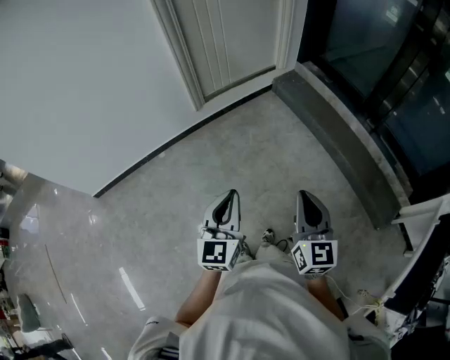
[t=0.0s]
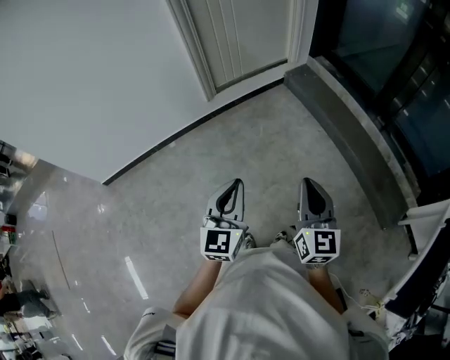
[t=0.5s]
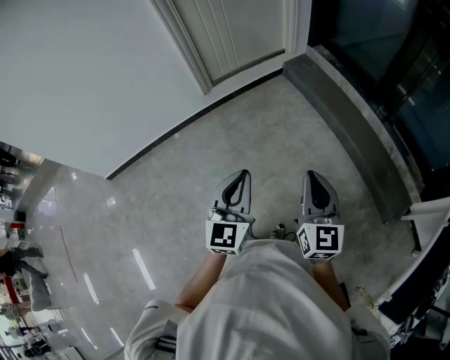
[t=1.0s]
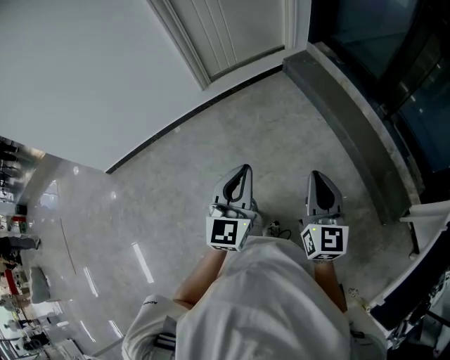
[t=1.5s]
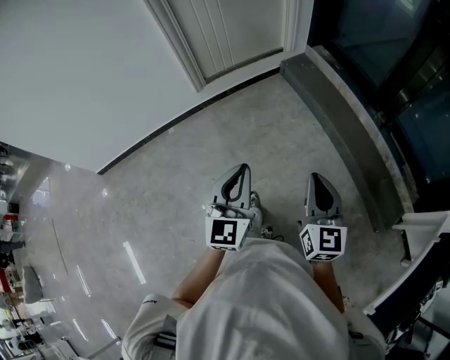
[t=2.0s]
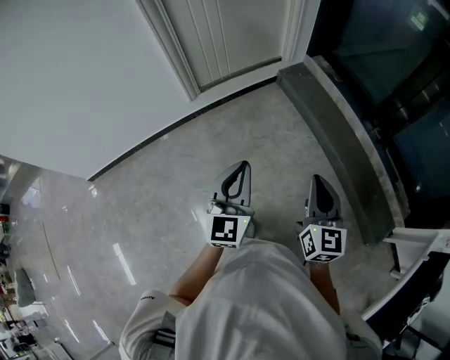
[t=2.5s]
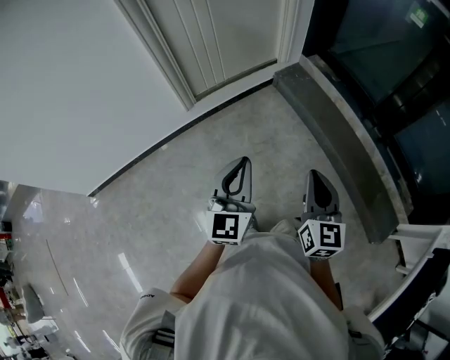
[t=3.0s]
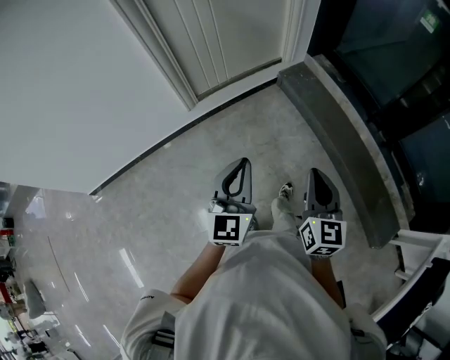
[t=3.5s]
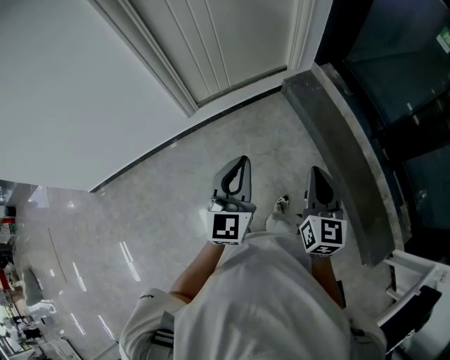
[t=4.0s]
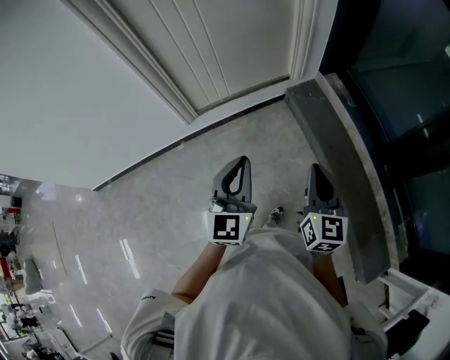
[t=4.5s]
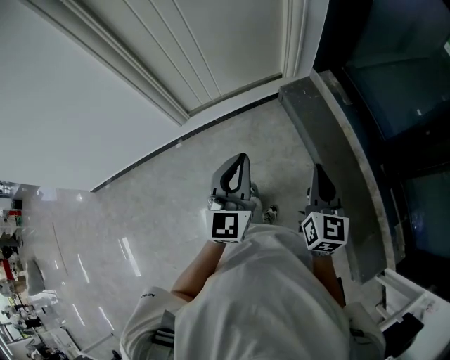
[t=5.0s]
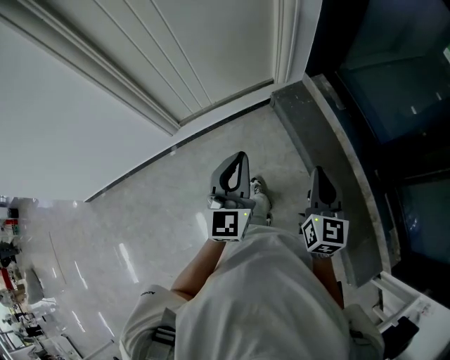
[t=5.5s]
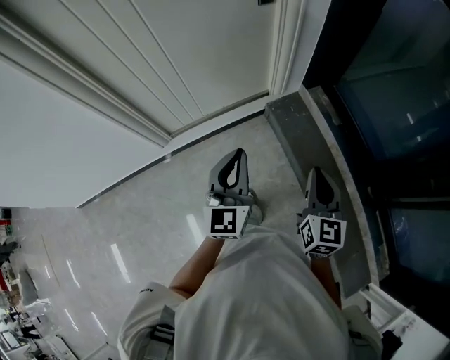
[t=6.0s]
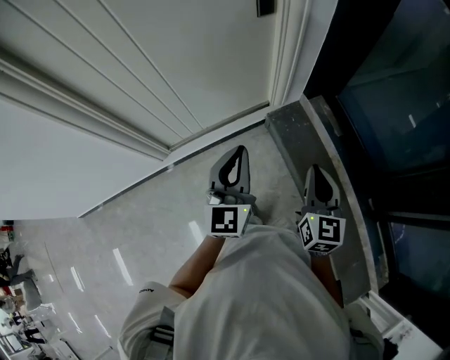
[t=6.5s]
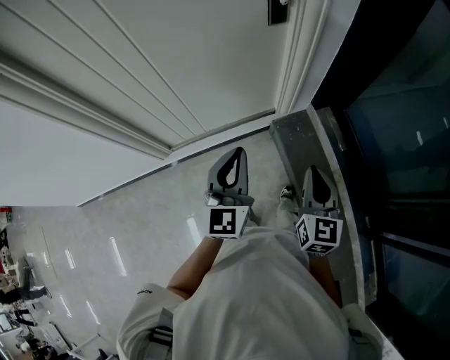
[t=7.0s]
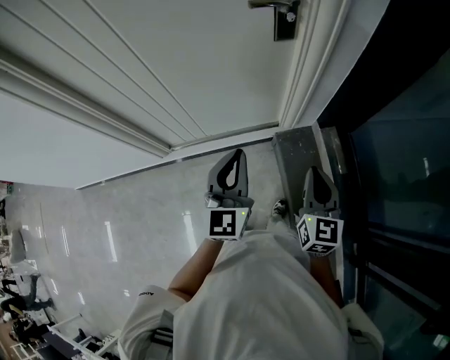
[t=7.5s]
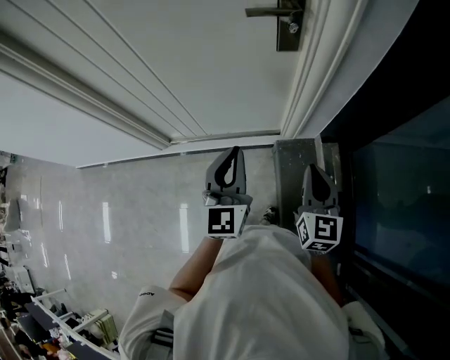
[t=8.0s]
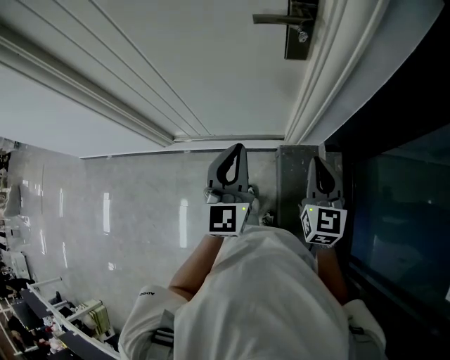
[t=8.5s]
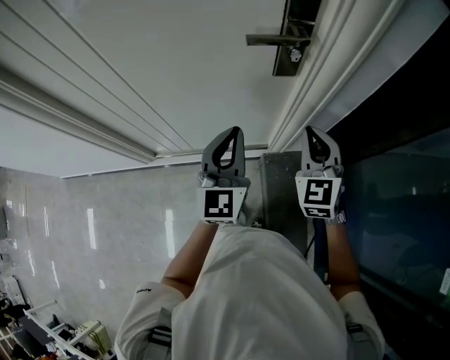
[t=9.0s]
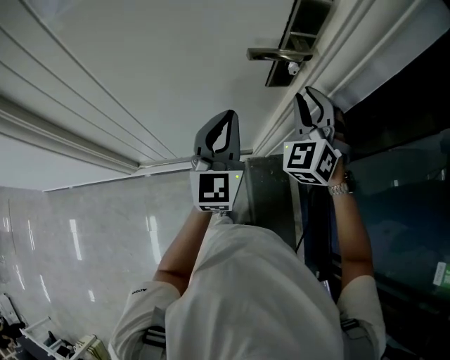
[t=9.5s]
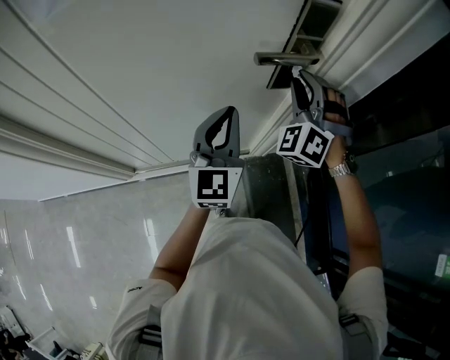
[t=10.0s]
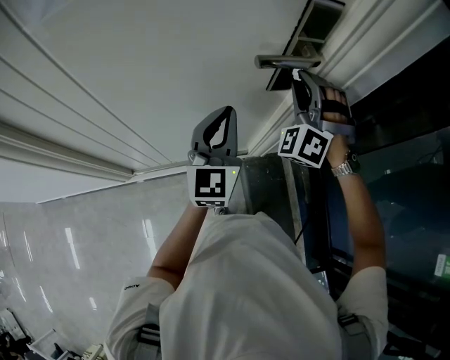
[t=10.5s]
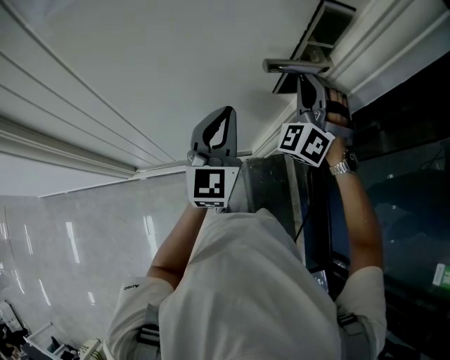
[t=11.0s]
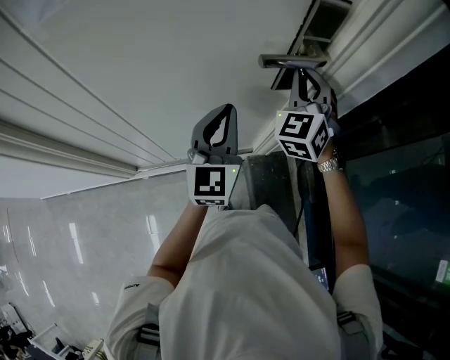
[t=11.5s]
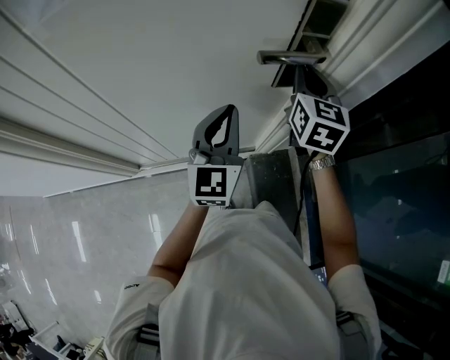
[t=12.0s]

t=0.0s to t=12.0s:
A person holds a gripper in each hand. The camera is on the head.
t=0.0s to t=2.0s: The grippers both shift to the right and forward by approximately 15 cm.
t=2.0s to t=4.0s: Both grippers travel together forward, about 35 cm.
t=4.0s to t=6.0s: Both grippers travel together forward and to the right, approximately 35 cm.
t=6.0s to t=8.0s: The right gripper travels forward by roughly 35 cm, and rotates some 20 degrees, while the left gripper goes approximately 30 cm forward and to the right, and turns by about 20 degrees.
t=8.0s to t=10.0s: The two grippers go roughly 30 cm forward. The right gripper twists approximately 80 degrees counterclockwise, seen from behind.
t=10.0s to t=12.0s: The right gripper rolls clockwise, seen from behind, by roughly 70 degrees.

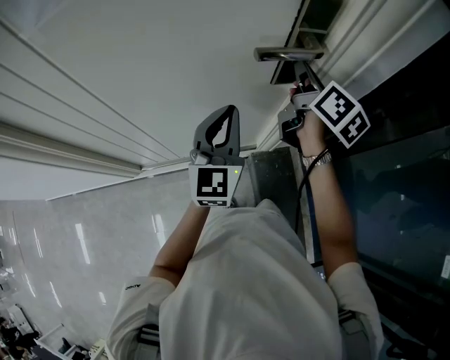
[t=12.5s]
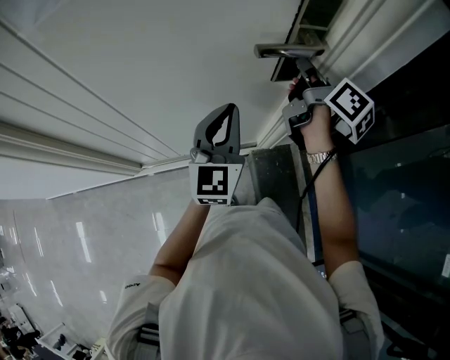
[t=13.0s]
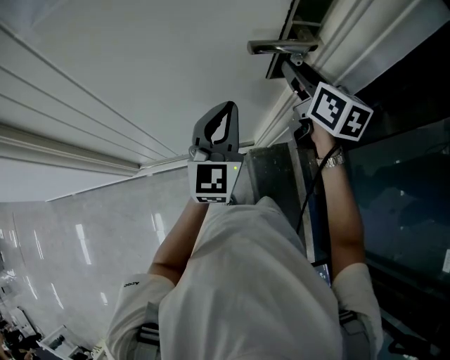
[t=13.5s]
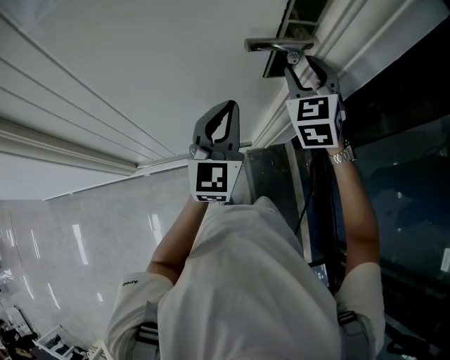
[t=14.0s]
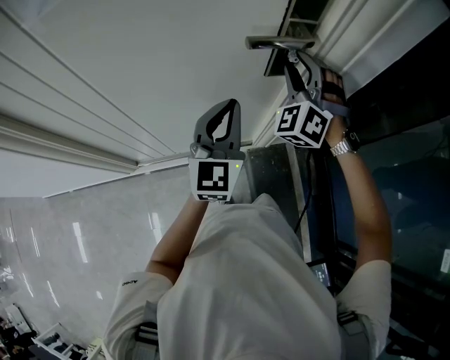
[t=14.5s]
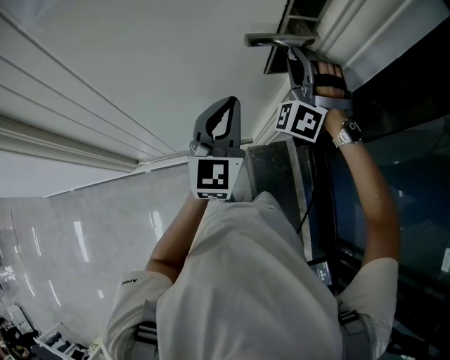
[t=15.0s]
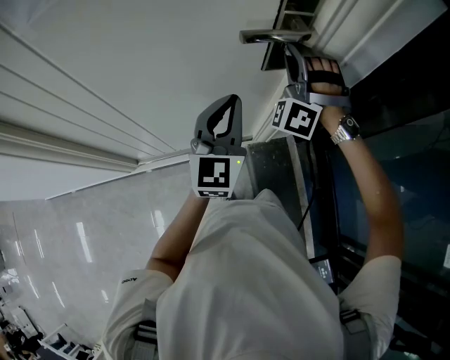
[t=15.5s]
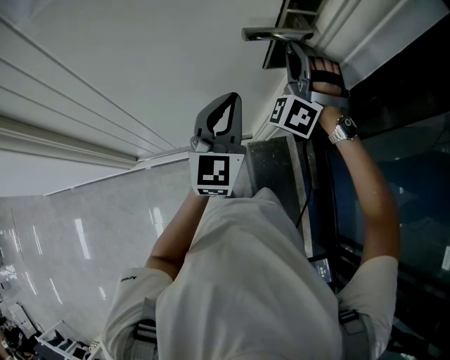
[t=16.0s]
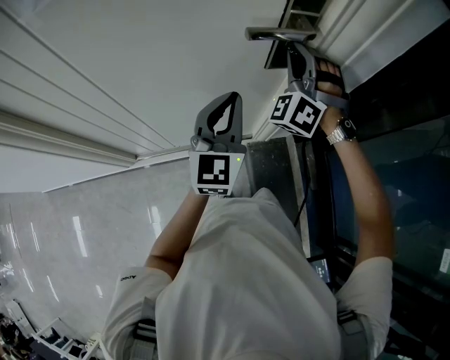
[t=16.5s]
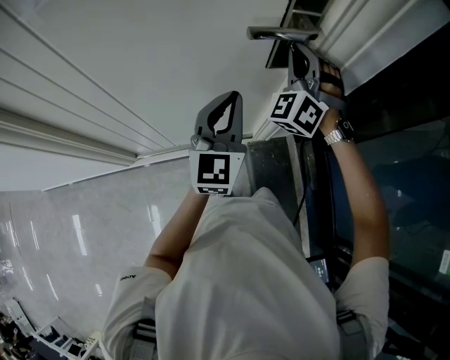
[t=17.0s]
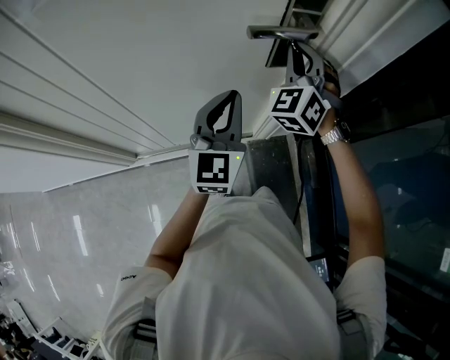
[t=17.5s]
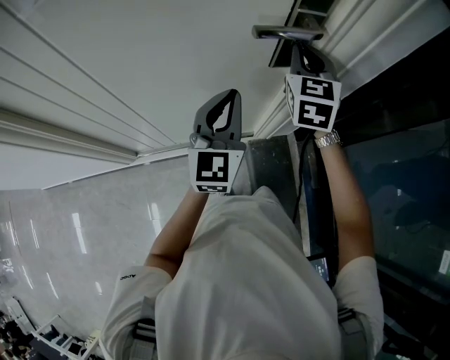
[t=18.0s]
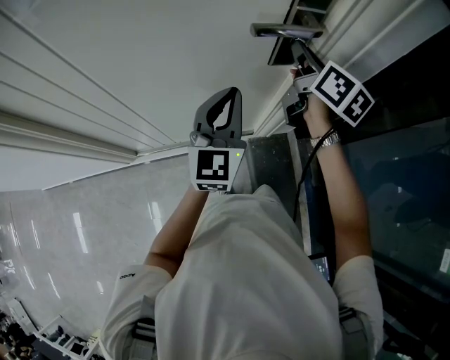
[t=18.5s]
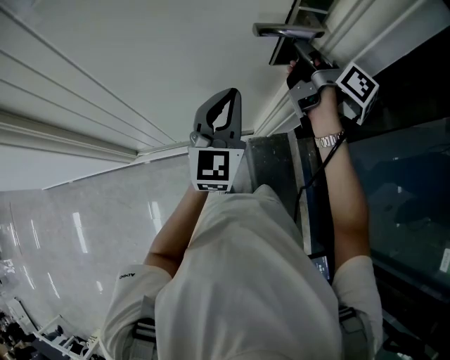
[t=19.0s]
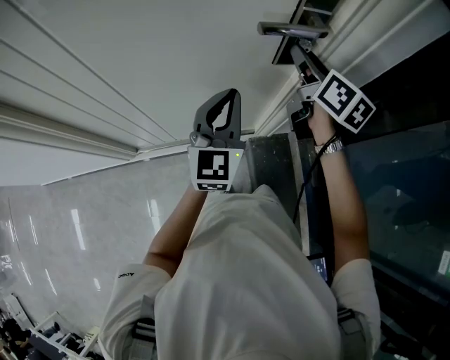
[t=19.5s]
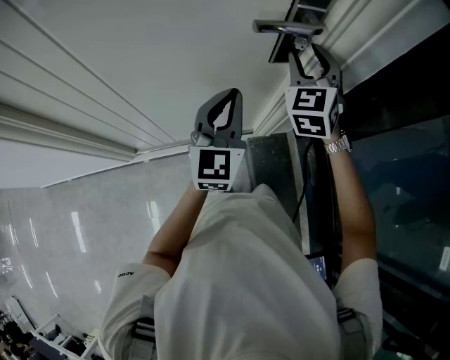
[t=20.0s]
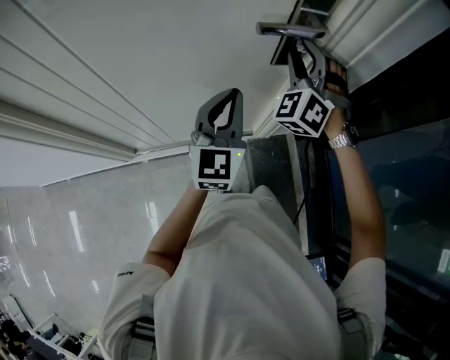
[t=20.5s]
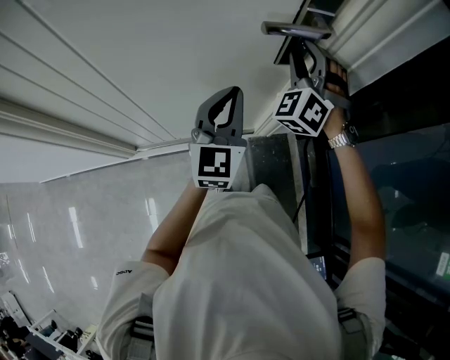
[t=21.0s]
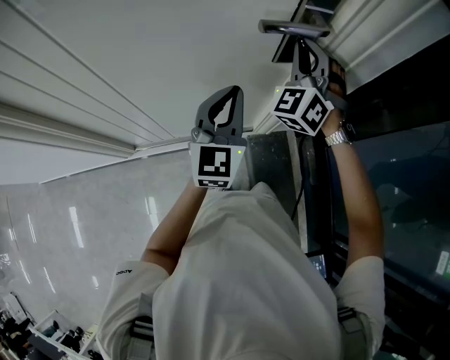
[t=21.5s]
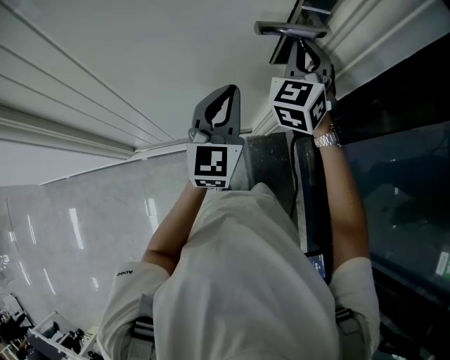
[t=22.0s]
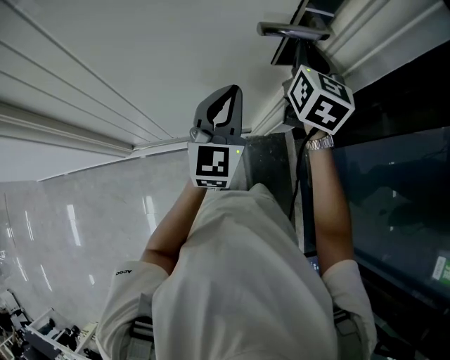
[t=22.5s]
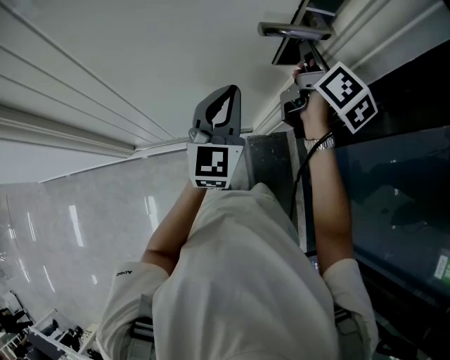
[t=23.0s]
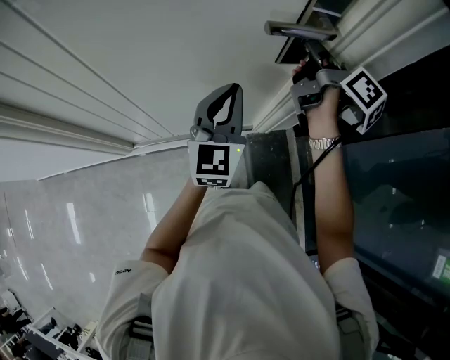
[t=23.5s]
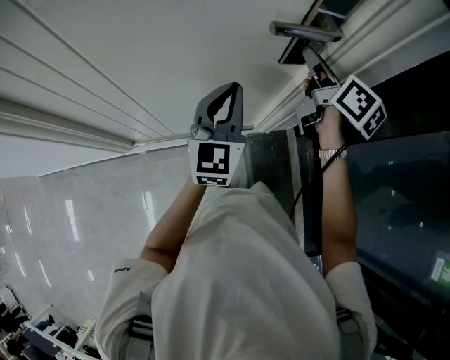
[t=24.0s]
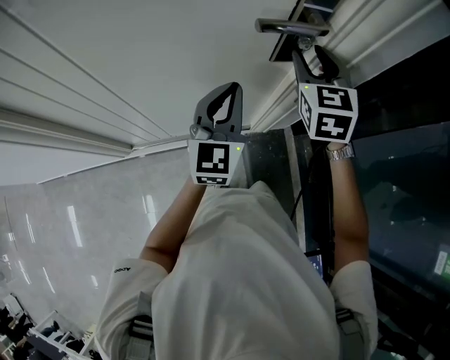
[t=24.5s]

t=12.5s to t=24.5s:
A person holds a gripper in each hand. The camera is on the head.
t=12.5s to t=14.5s: The right gripper rolls counterclockwise, seen from behind, by some 110 degrees, and opens its fingers.
t=14.5s to t=16.5s: The right gripper closes its fingers.
t=16.5s to t=18.5s: The right gripper rotates around the line of its fingers by roughly 110 degrees, clockwise from behind.
t=18.5s to t=20.5s: The right gripper rolls counterclockwise, seen from behind, by approximately 100 degrees, and opens up.
t=20.5s to t=22.5s: The right gripper rolls clockwise, seen from behind, by approximately 70 degrees, and closes.
t=22.5s to t=24.5s: The right gripper swivels about 20 degrees, and opens up.

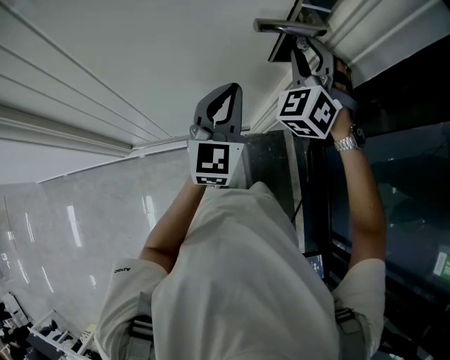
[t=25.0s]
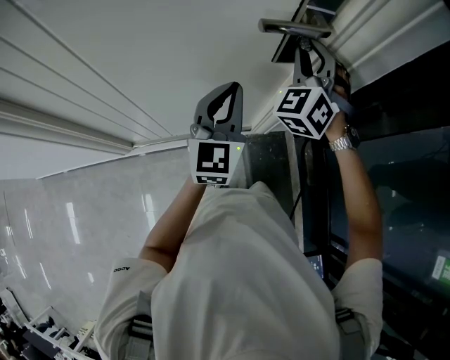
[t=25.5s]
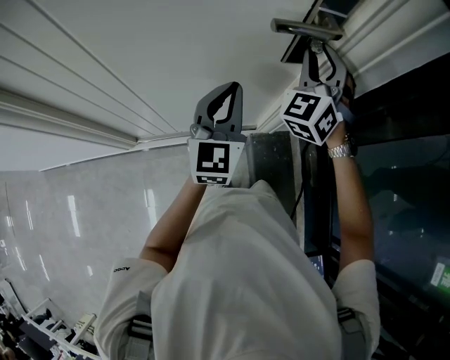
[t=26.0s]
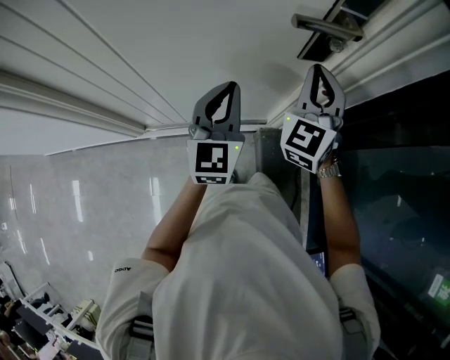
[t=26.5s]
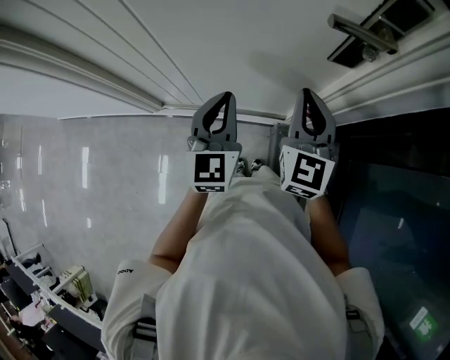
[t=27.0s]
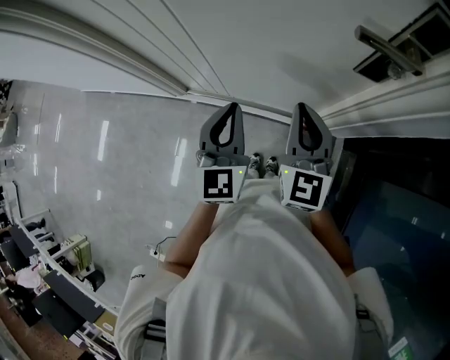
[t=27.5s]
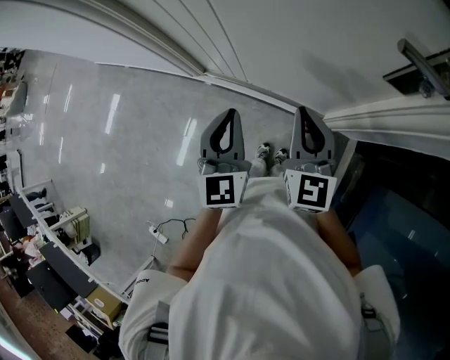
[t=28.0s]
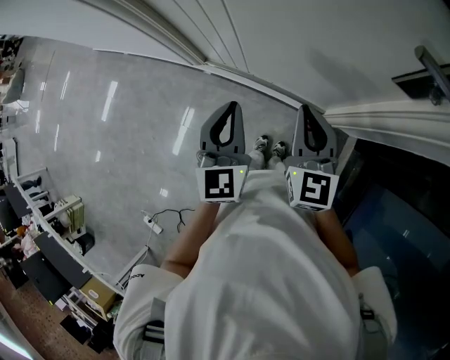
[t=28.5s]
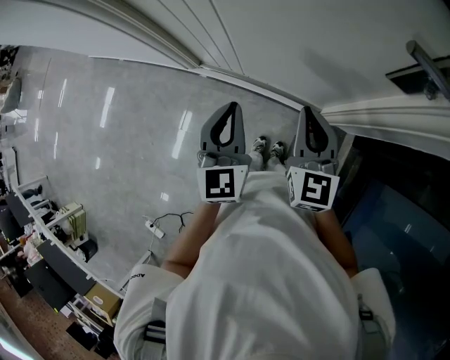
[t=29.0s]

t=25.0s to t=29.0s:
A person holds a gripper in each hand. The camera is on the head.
t=25.0s to t=27.0s: The left gripper shifts about 15 cm to the left, backward and downward, and changes its angle by about 20 degrees, while the right gripper is displaced backward, to the left and downward by approximately 15 cm, rotates around the line of its fingers by roughly 50 degrees, clockwise from behind, and closes.
t=27.0s to t=29.0s: The left gripper is displaced to the left and backward by roughly 10 cm. The right gripper heads to the left and downward, covering approximately 10 cm, and swivels about 20 degrees.
